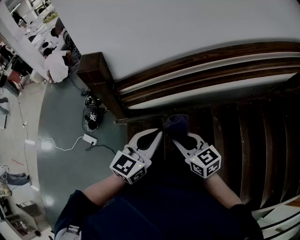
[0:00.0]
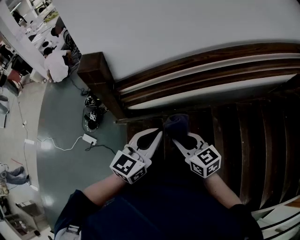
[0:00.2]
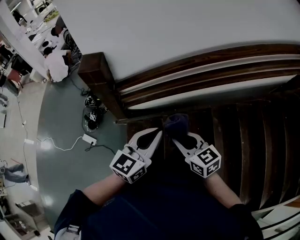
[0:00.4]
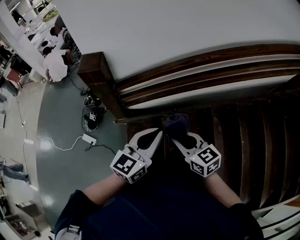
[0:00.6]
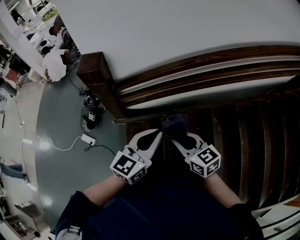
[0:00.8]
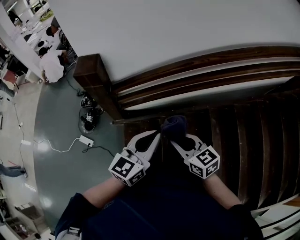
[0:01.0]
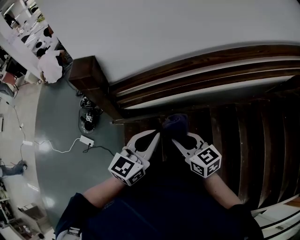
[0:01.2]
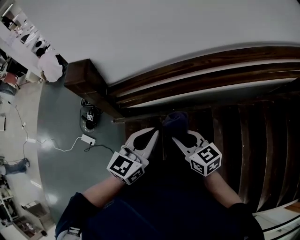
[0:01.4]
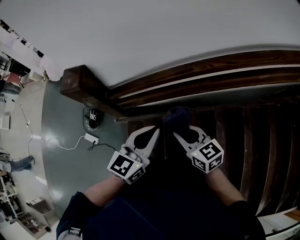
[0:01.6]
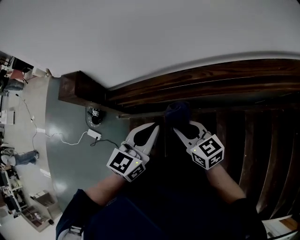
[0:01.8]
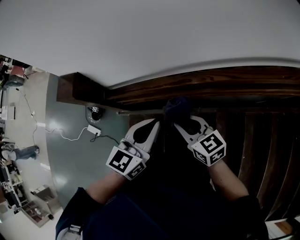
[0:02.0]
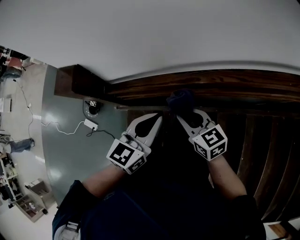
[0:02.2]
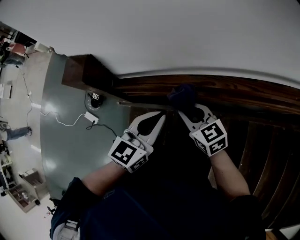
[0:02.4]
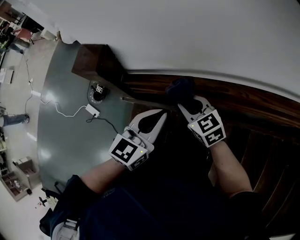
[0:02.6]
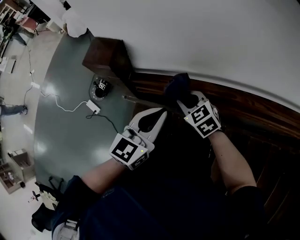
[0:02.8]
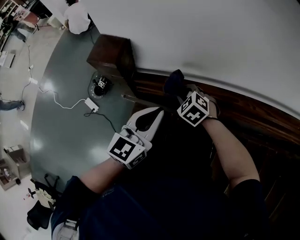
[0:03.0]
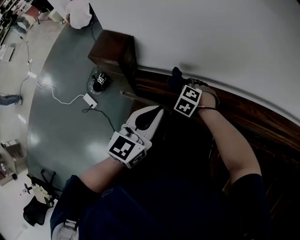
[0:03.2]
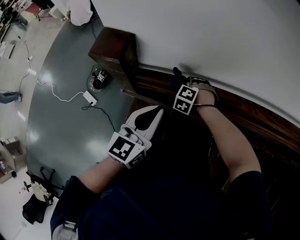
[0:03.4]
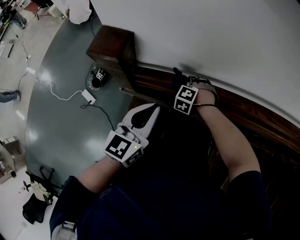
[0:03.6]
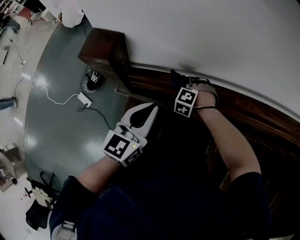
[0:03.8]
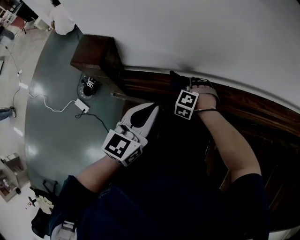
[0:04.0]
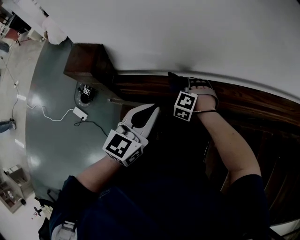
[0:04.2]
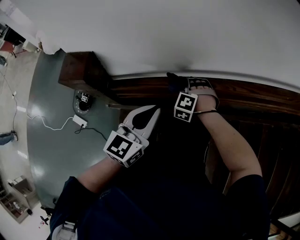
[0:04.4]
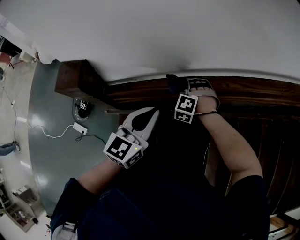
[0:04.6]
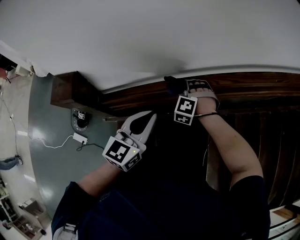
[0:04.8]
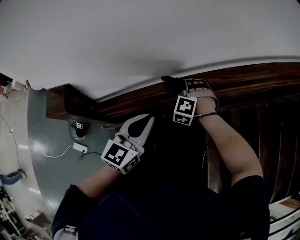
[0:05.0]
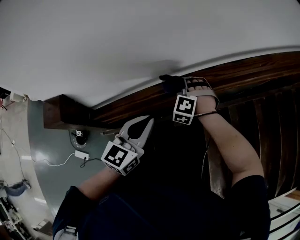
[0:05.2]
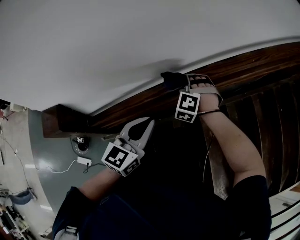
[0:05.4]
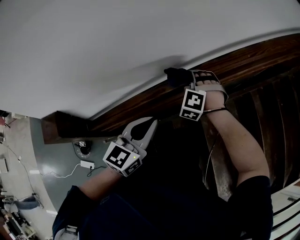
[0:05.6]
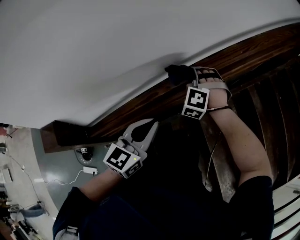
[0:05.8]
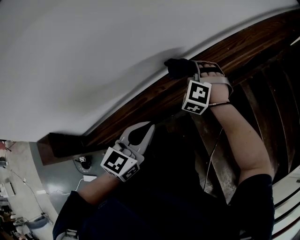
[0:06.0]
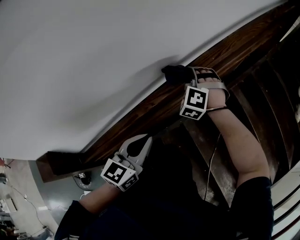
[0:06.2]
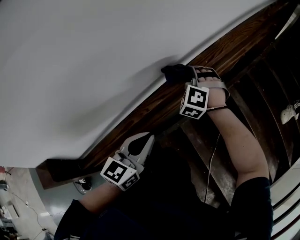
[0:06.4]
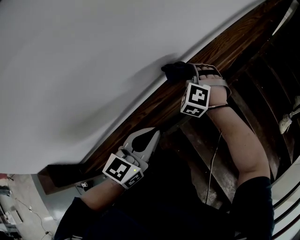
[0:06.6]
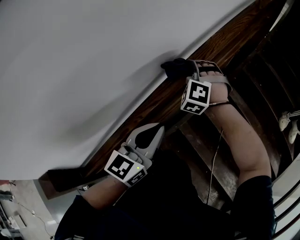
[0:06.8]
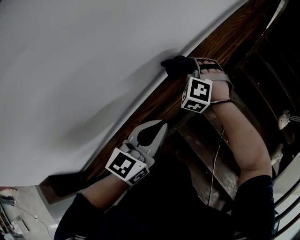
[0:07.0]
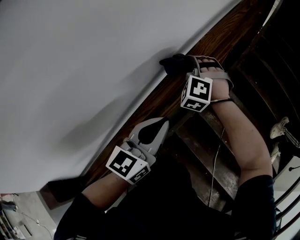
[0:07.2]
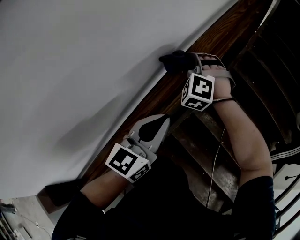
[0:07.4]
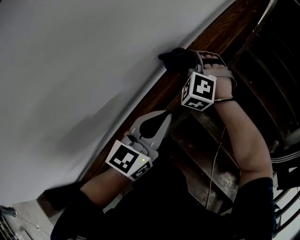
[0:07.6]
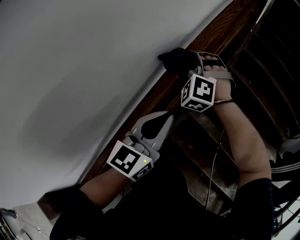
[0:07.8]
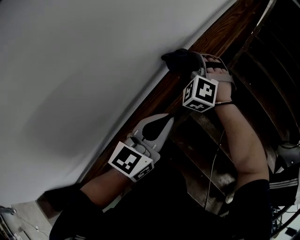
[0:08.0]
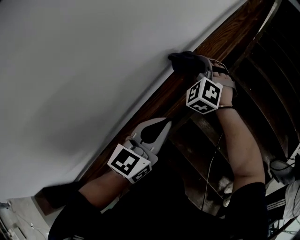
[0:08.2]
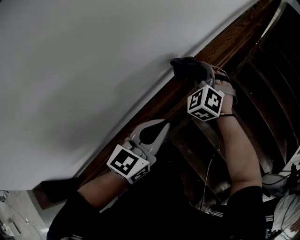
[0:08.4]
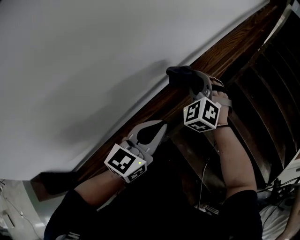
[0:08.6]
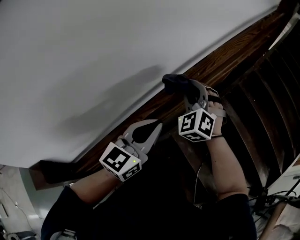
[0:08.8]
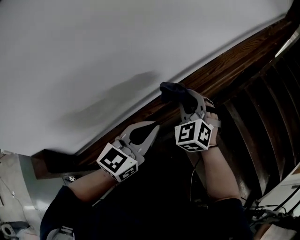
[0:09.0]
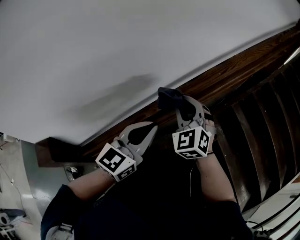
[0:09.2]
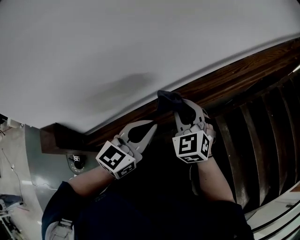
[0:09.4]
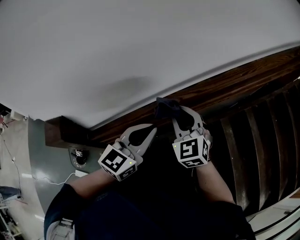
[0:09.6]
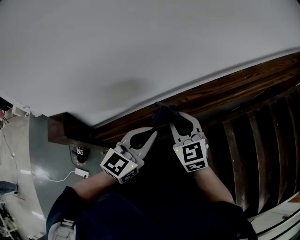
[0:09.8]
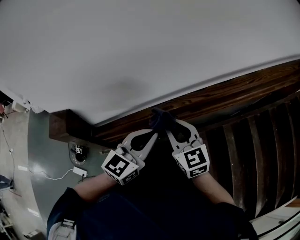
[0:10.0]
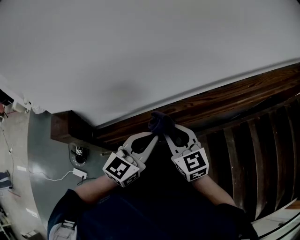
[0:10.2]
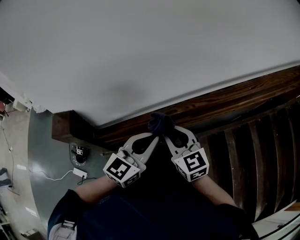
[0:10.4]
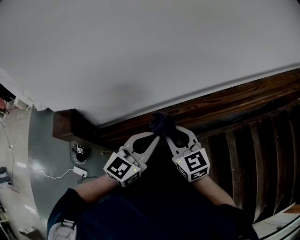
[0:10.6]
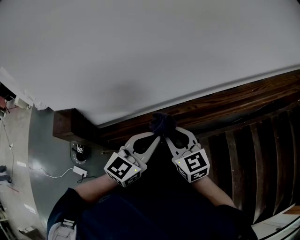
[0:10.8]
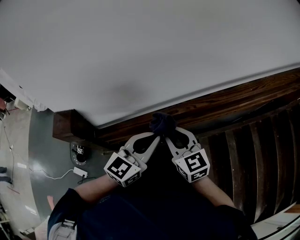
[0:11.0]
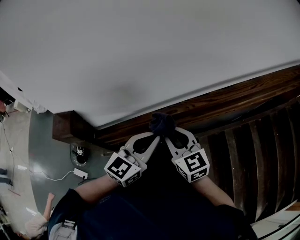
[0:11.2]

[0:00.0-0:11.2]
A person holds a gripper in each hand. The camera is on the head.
0:00.0 to 0:01.6: Both grippers move forward, some 20 cm.
0:01.6 to 0:03.2: The left gripper goes roughly 20 cm to the left and forward, and changes its angle by about 20 degrees, while the right gripper travels forward, downward and to the left by some 35 cm, and rolls counterclockwise, seen from behind, by roughly 70 degrees.
0:03.2 to 0:04.8: The left gripper is displaced to the right and forward by some 15 cm, and turns by roughly 20 degrees; the right gripper travels to the right, forward and upward by some 20 cm, and swivels about 20 degrees.
0:04.8 to 0:06.4: The right gripper goes roughly 40 cm forward, to the right and upward, and rotates roughly 30 degrees. The left gripper travels forward and to the right by about 25 cm, and swivels about 30 degrees.
0:06.4 to 0:08.0: Both grippers move forward, upward and to the right, about 20 cm.
0:08.0 to 0:09.6: The left gripper changes place by approximately 30 cm, and swivels approximately 30 degrees, while the right gripper moves roughly 40 cm, and turns by roughly 50 degrees.
0:09.6 to 0:11.2: The right gripper is displaced to the left and backward by about 10 cm, and changes its angle by approximately 30 degrees. The left gripper ends up about 5 cm from where it was.

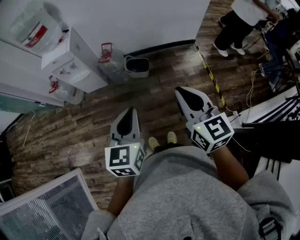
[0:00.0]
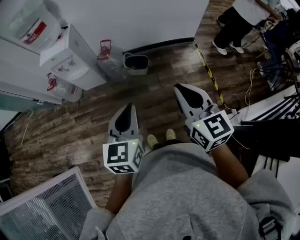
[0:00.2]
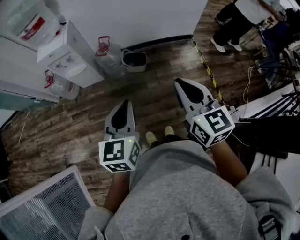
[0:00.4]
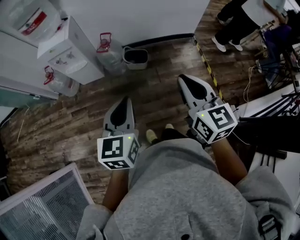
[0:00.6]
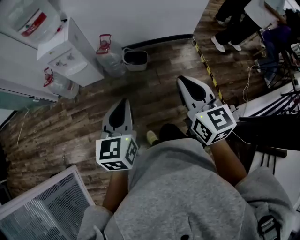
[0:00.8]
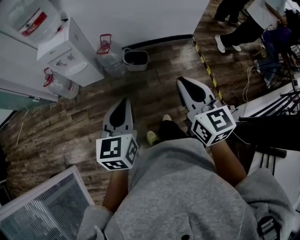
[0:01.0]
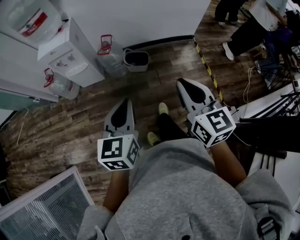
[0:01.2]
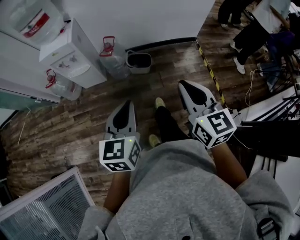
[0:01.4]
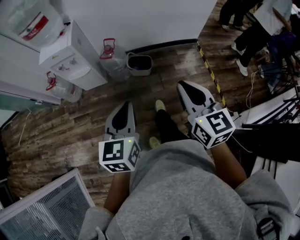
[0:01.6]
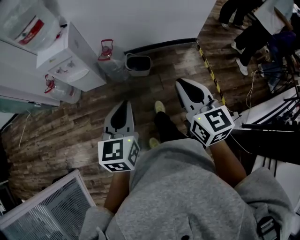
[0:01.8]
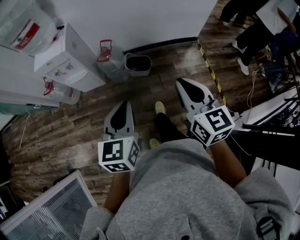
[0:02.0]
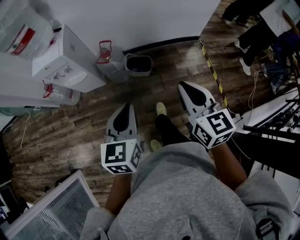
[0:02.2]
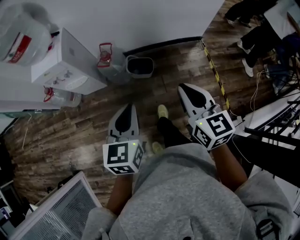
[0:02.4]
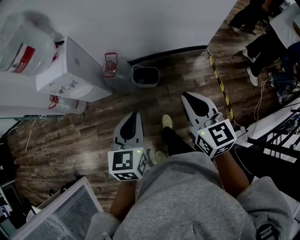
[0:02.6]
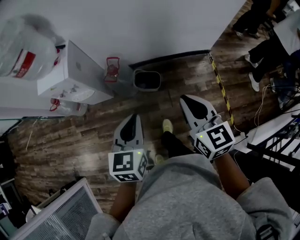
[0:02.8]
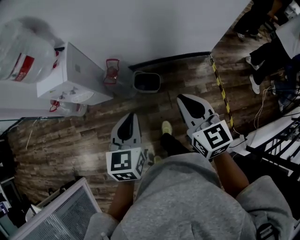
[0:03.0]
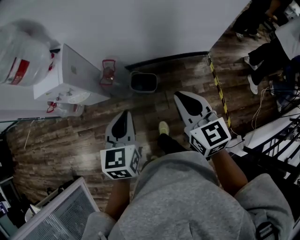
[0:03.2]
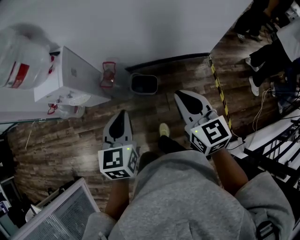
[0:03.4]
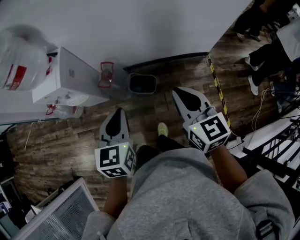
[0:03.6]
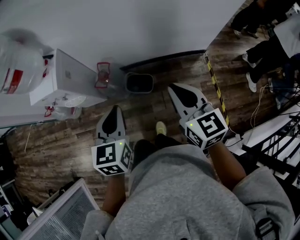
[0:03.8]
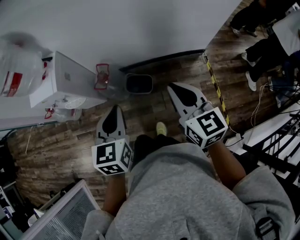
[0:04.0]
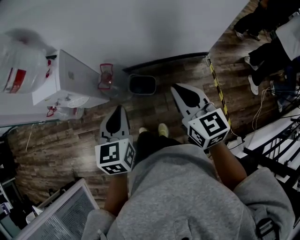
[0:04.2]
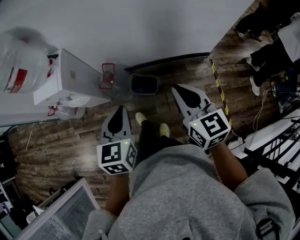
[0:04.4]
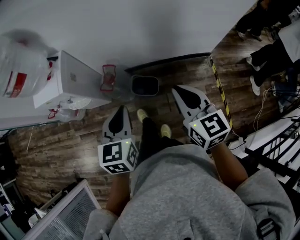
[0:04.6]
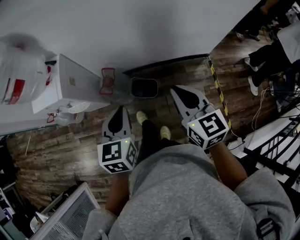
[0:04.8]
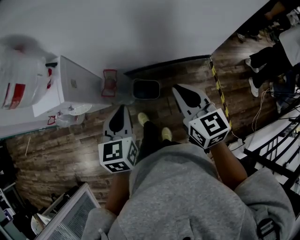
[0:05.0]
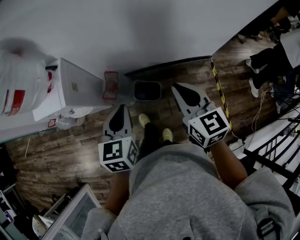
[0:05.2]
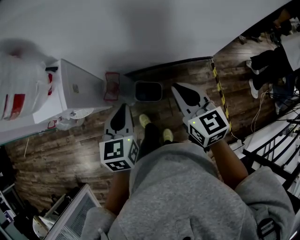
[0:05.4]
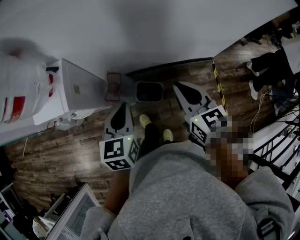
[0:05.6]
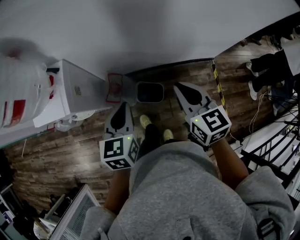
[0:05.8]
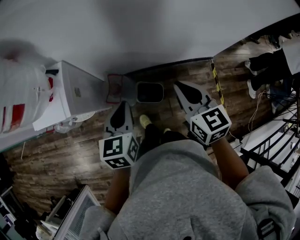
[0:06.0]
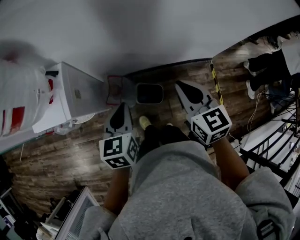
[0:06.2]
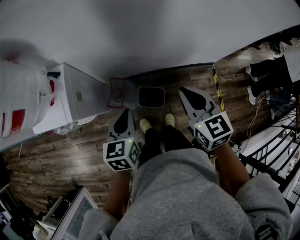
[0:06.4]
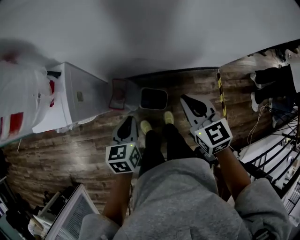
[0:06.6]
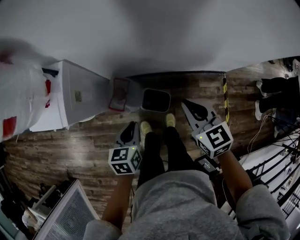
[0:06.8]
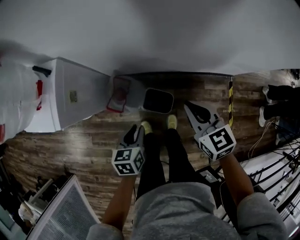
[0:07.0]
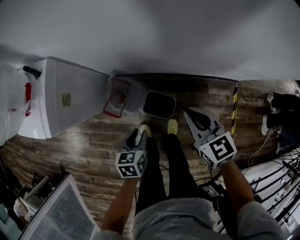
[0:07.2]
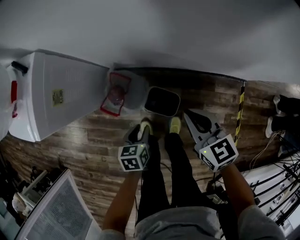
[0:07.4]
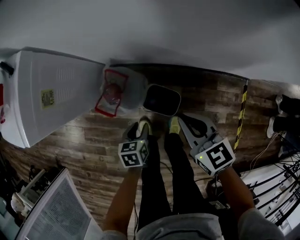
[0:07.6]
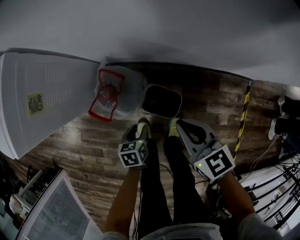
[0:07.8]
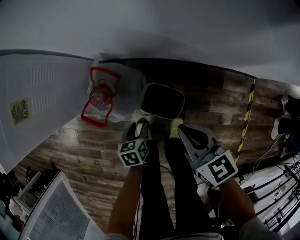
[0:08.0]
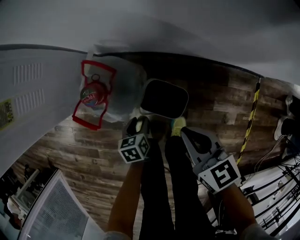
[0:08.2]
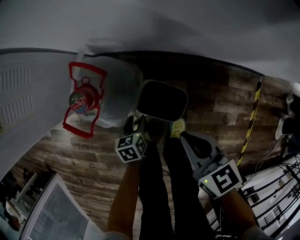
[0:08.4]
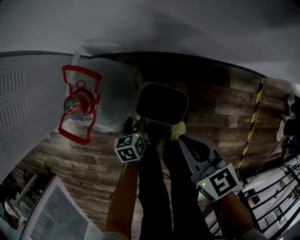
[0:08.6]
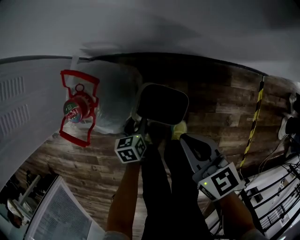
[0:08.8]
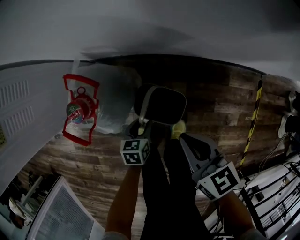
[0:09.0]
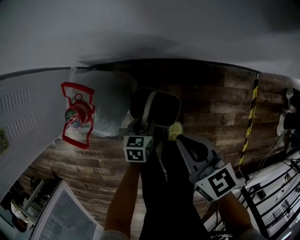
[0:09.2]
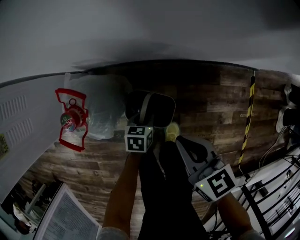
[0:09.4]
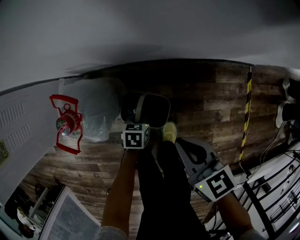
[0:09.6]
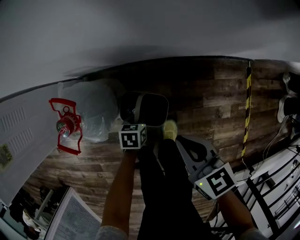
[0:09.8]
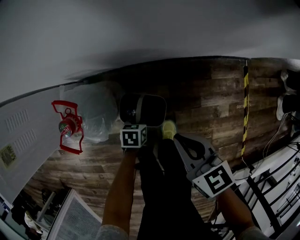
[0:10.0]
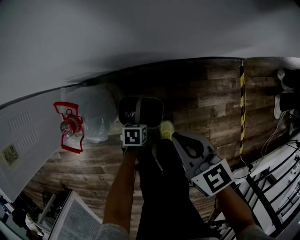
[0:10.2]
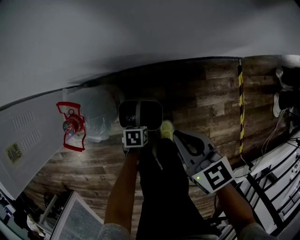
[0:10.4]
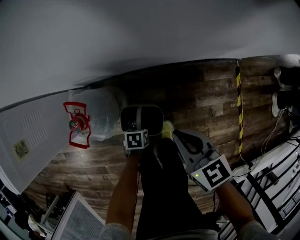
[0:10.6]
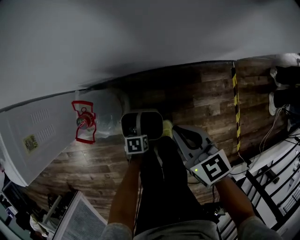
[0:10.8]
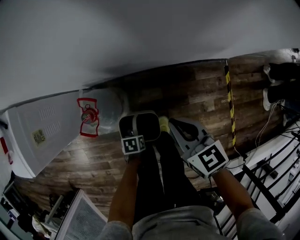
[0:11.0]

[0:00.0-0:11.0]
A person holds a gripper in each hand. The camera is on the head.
0:00.0 to 0:01.6: The left gripper heads to the left and forward, covering roughly 10 cm; the right gripper shifts some 5 cm forward.
0:01.6 to 0:03.2: The two grippers go roughly 25 cm forward.
0:03.2 to 0:04.8: Both grippers travel together forward, approximately 10 cm.
0:04.8 to 0:06.2: Both grippers move forward and to the left, approximately 15 cm.
0:06.2 to 0:07.8: Both grippers move downward, roughly 40 cm. The right gripper rotates about 30 degrees. The left gripper rotates approximately 40 degrees, and opens up.
0:07.8 to 0:09.4: The left gripper moves downward and to the right, about 20 cm, and swivels some 20 degrees. The right gripper shifts about 10 cm downward and to the right.
0:09.4 to 0:11.0: The two grippers go some 15 cm upward. The left gripper turns by roughly 30 degrees, and closes.

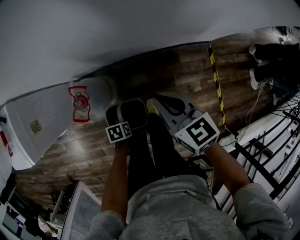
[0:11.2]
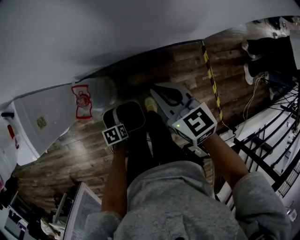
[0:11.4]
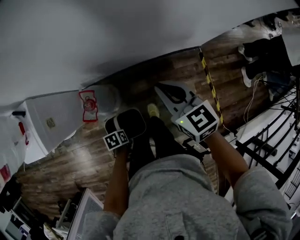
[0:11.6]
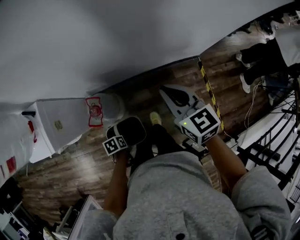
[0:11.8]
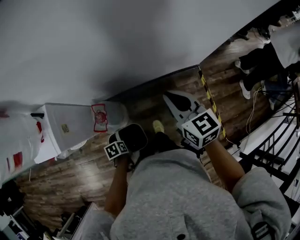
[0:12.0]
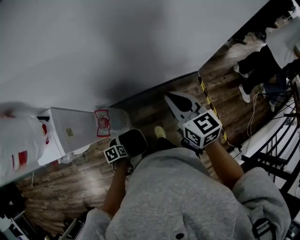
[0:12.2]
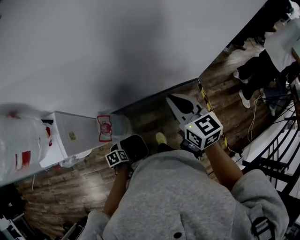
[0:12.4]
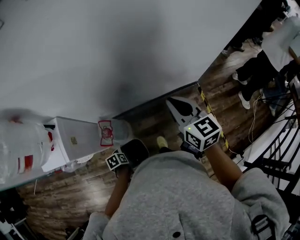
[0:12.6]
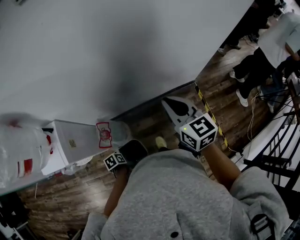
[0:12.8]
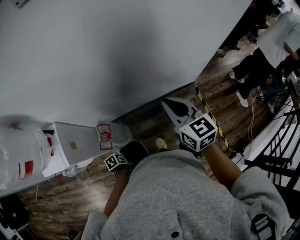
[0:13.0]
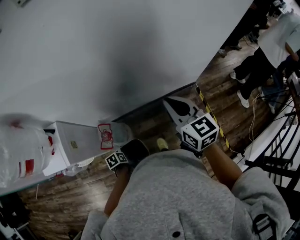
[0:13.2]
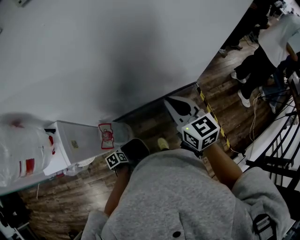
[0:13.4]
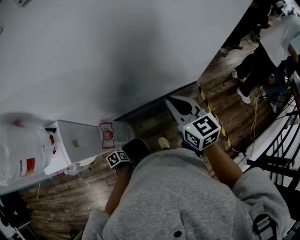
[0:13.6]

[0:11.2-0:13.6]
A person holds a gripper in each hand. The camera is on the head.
0:11.2 to 0:12.4: The two grippers go roughly 20 cm upward. The right gripper swivels roughly 20 degrees.
0:12.4 to 0:13.6: The grippers make only small movements.
